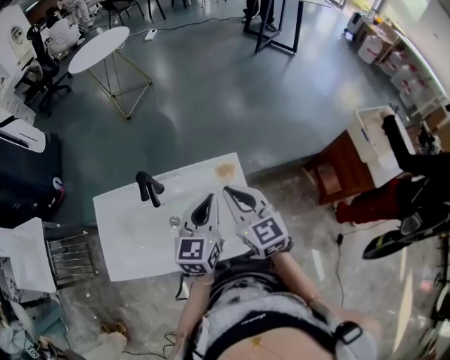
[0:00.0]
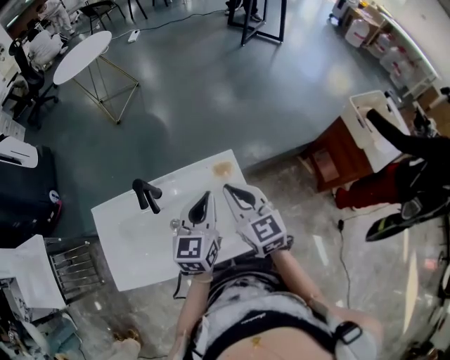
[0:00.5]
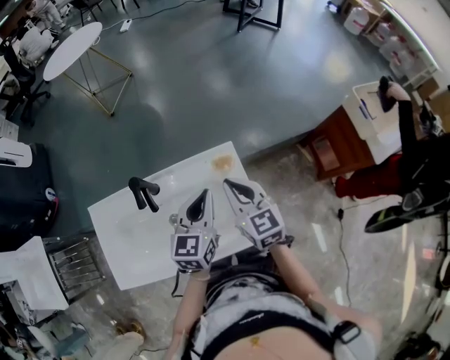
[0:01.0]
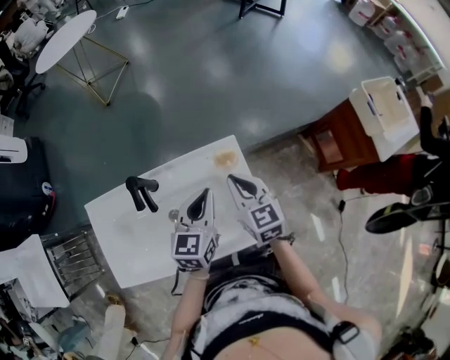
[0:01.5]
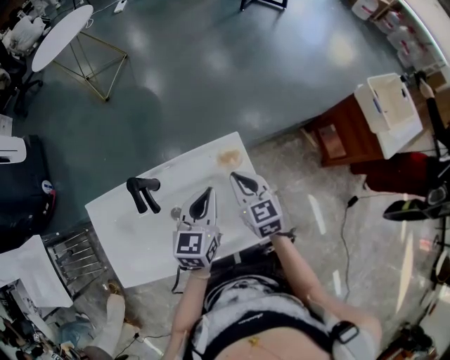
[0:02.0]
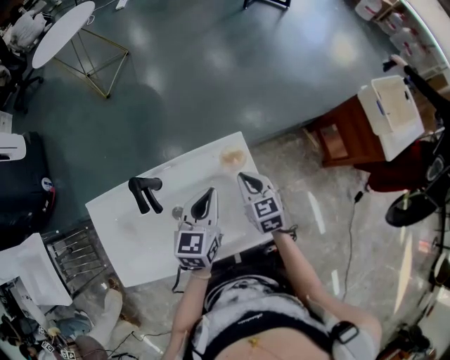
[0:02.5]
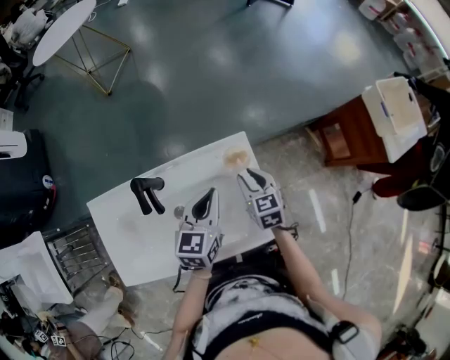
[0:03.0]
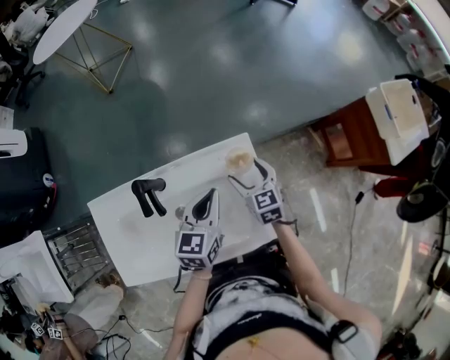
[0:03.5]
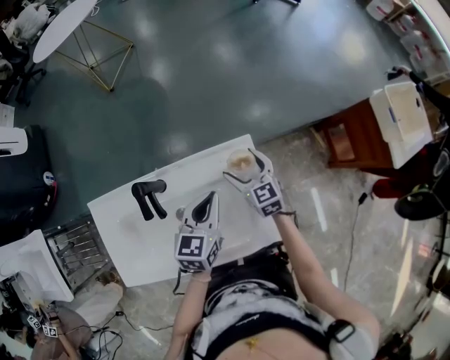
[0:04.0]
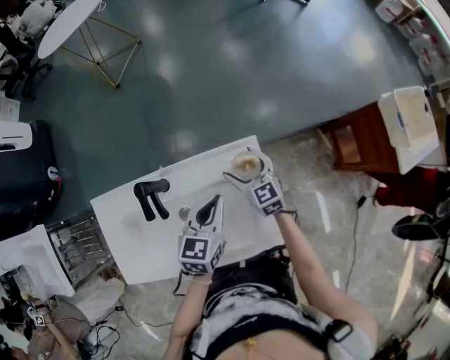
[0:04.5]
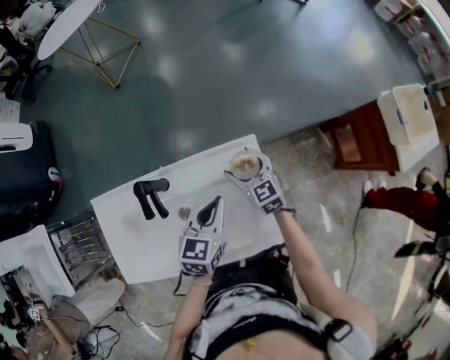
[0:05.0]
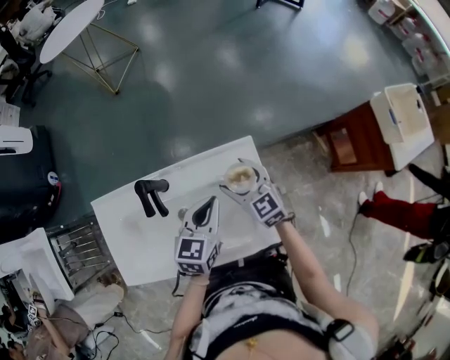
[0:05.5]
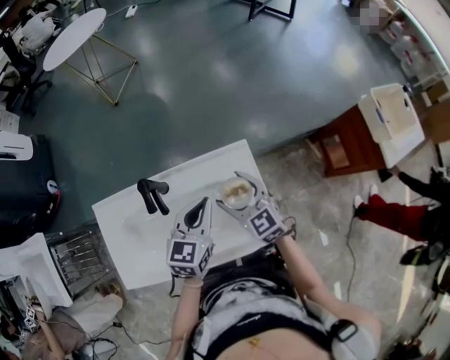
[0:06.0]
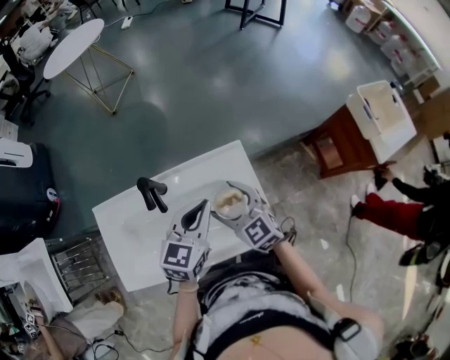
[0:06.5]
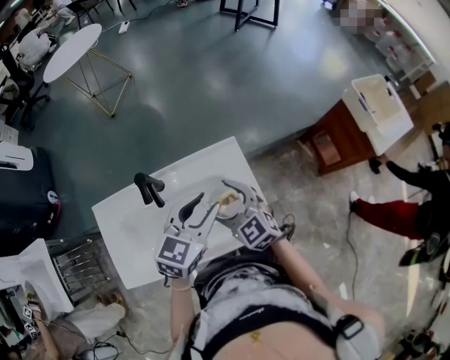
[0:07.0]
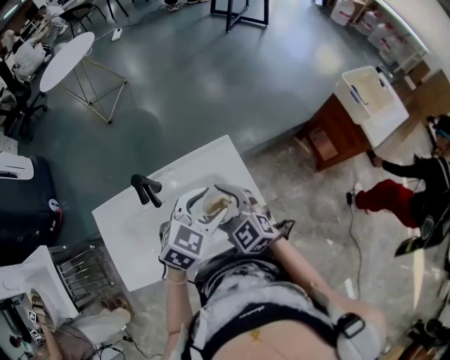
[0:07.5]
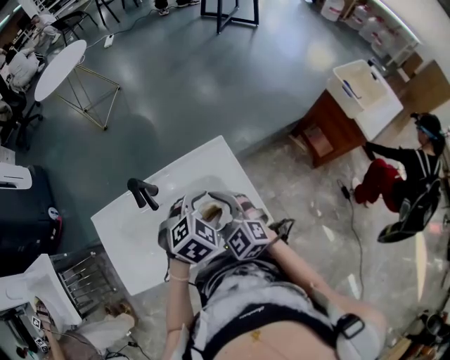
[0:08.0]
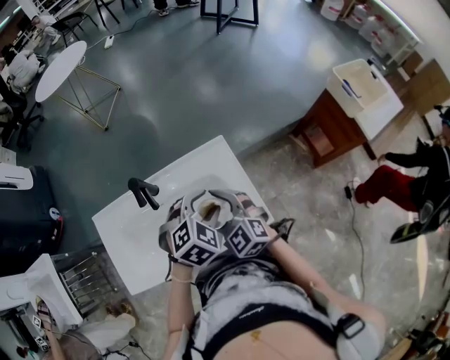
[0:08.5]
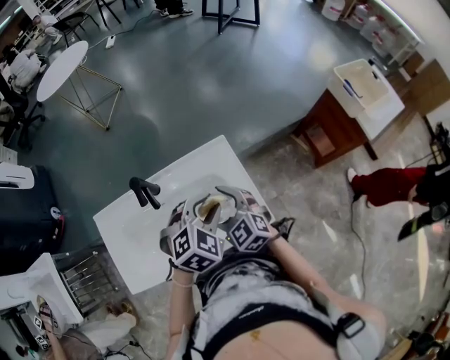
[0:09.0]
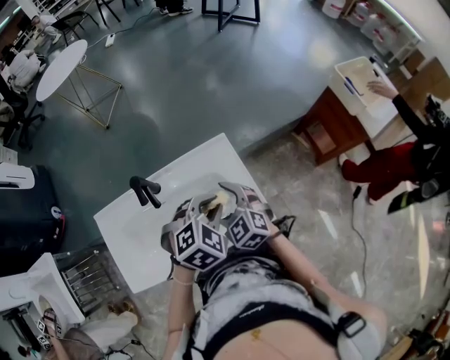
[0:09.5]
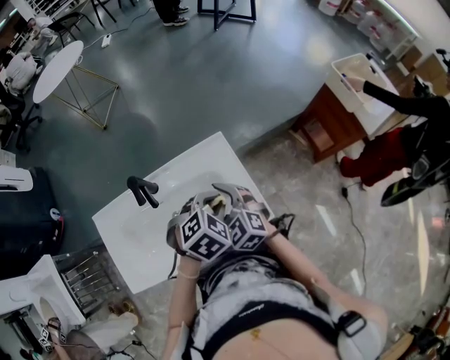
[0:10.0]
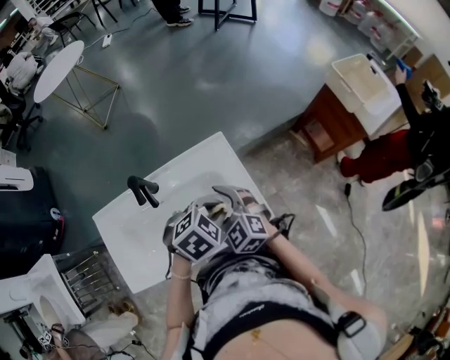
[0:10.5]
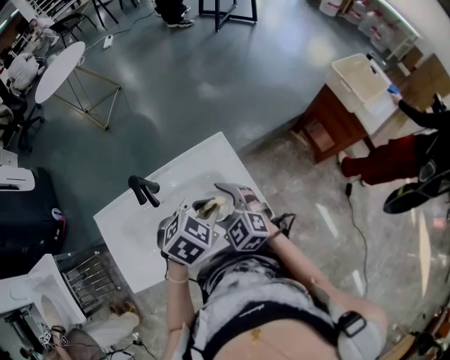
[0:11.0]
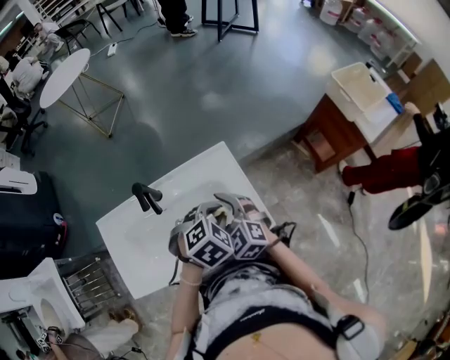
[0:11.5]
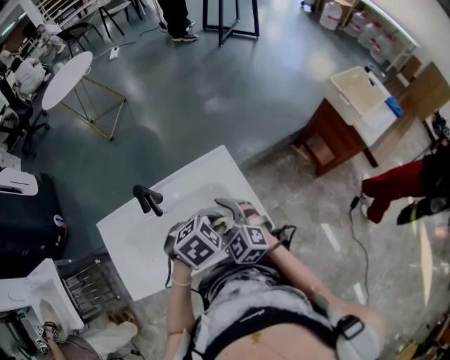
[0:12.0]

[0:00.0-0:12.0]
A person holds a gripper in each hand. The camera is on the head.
0:00.0 to 0:02.0: The left gripper heads downward, covering approximately 10 cm. Meanwhile the right gripper shifts roughly 15 cm downward and forward.
0:02.0 to 0:04.0: The right gripper shifts roughly 10 cm downward and forward, and opens.
0:04.0 to 0:06.0: The left gripper shifts by some 5 cm, while the right gripper shifts some 15 cm upward and backward.
0:06.0 to 0:08.0: The left gripper travels backward and to the right by roughly 10 cm, points its fingers roughly 30 degrees further downward, and opens up. The right gripper travels backward by about 10 cm.
0:08.0 to 0:10.0: The left gripper closes.
0:10.0 to 0:12.0: There are only small adjustments of the grippers.

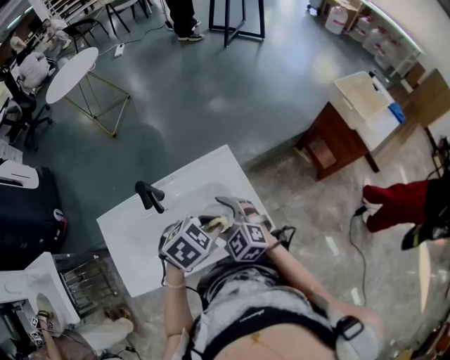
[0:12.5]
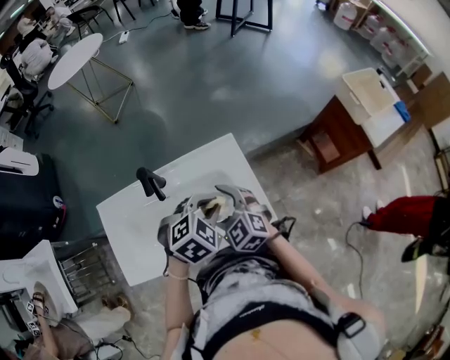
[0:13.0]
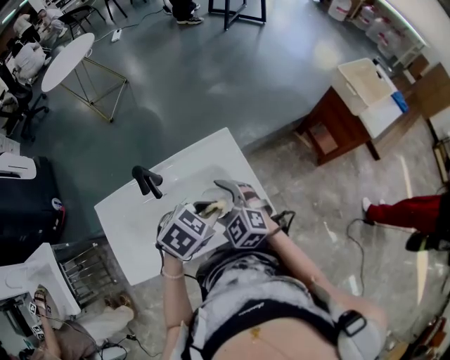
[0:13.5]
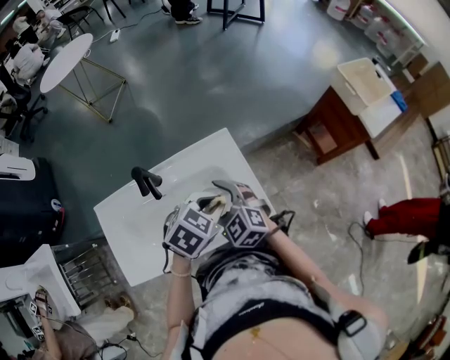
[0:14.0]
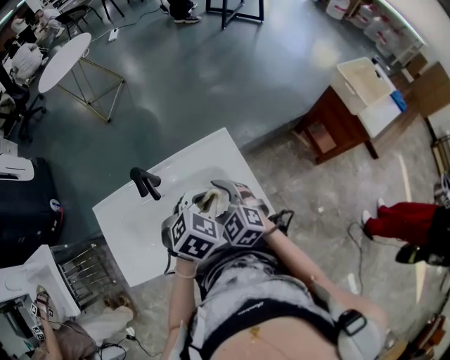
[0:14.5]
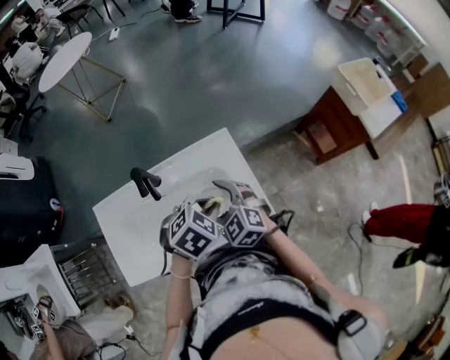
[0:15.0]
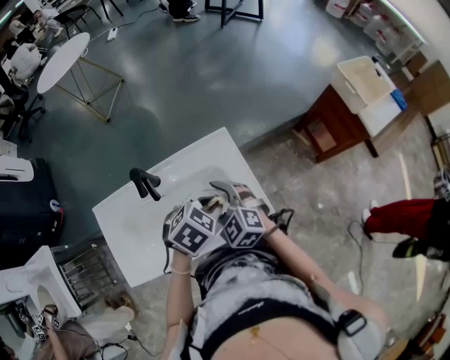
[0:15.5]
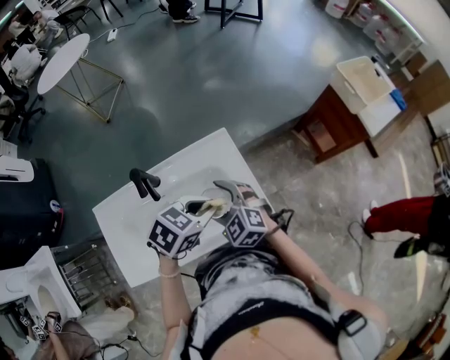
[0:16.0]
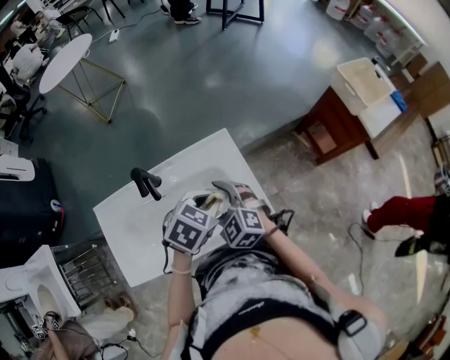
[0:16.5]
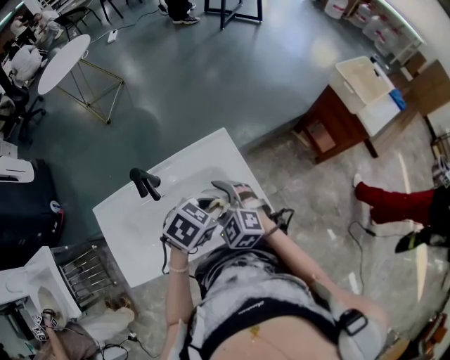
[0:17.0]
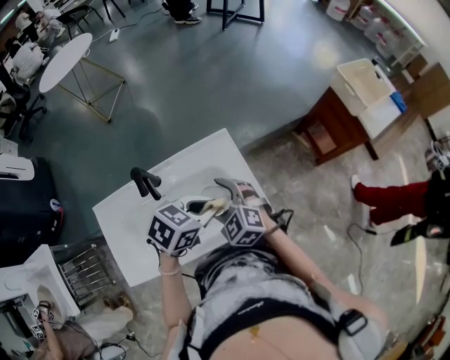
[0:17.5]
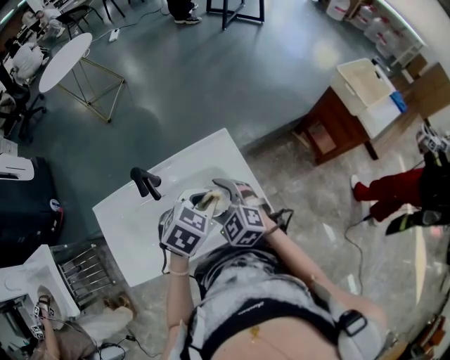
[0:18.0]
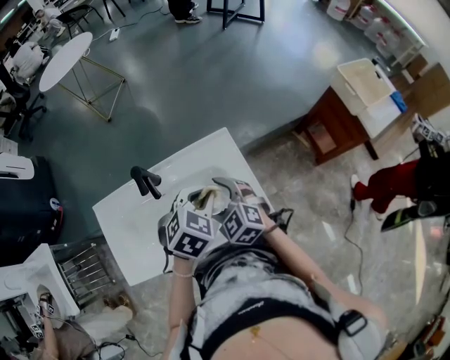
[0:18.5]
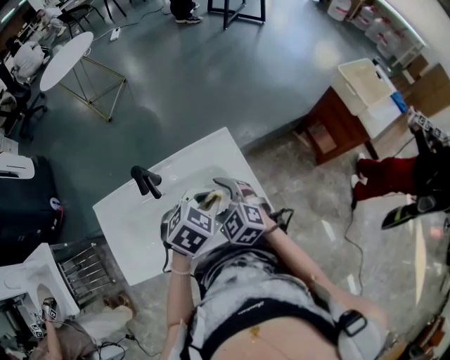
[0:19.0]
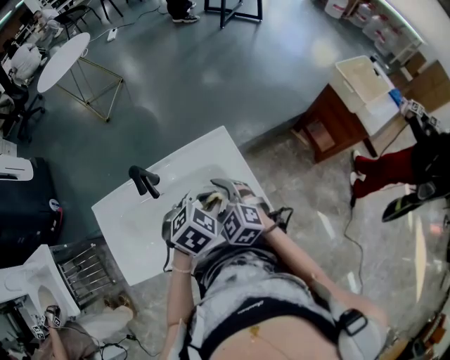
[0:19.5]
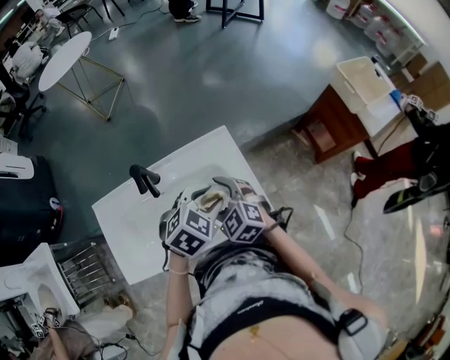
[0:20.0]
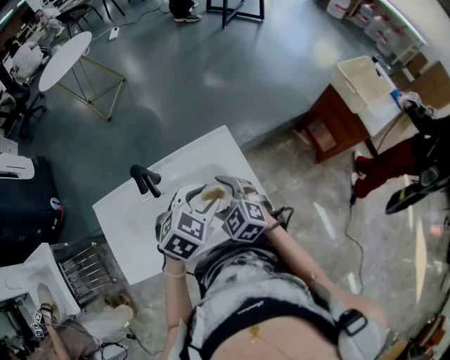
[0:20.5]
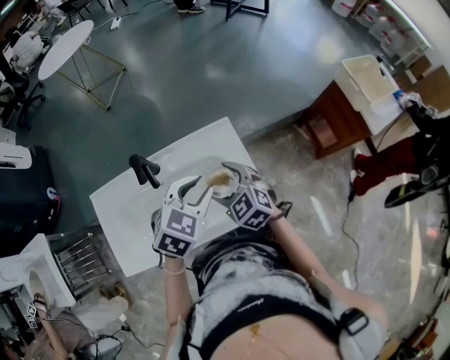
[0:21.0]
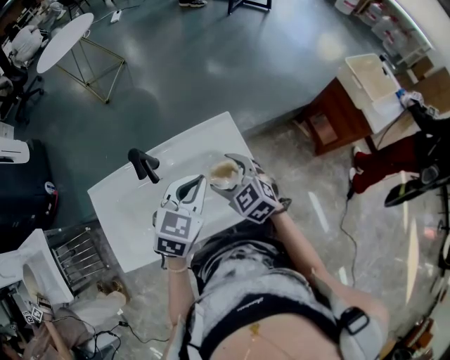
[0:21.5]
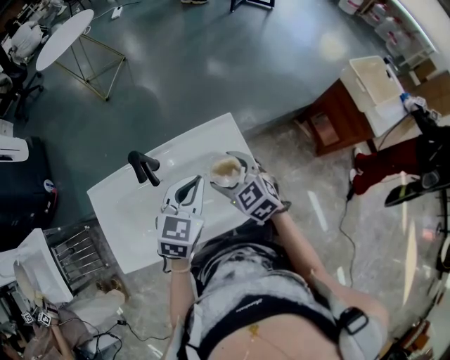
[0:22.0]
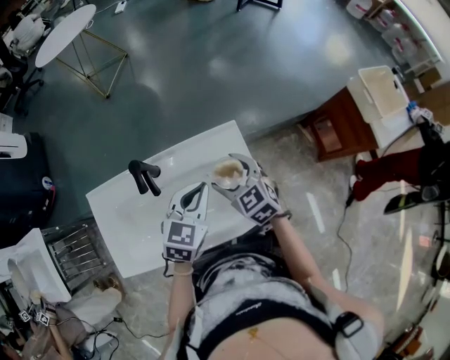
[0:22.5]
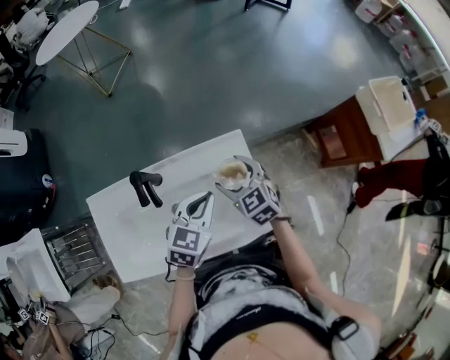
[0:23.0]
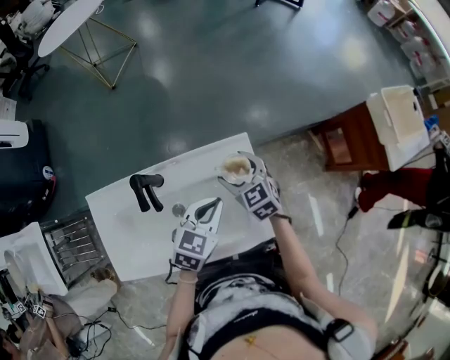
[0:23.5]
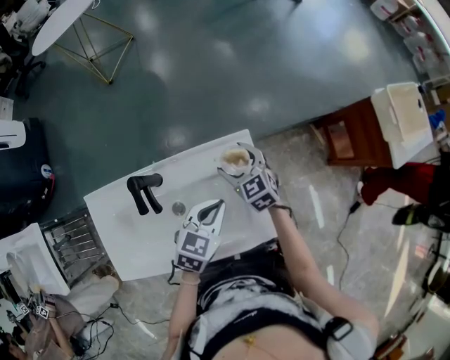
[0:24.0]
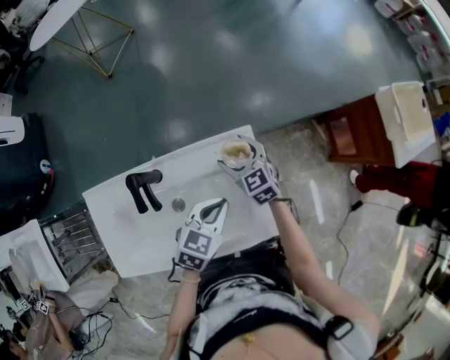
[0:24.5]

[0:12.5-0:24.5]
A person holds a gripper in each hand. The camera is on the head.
0:12.5 to 0:14.5: The left gripper ends up some 5 cm from where it was, and rotates some 20 degrees.
0:16.5 to 0:18.5: There are only small adjustments of the grippers.
0:18.5 to 0:20.5: The left gripper opens its fingers.
0:20.5 to 0:22.5: The left gripper shifts some 5 cm forward, rotates roughly 30 degrees, and closes up. Meanwhile the right gripper heads forward, covering roughly 10 cm.
0:22.5 to 0:24.5: The right gripper shifts roughly 15 cm forward and downward, while the left gripper heads downward, covering approximately 10 cm.

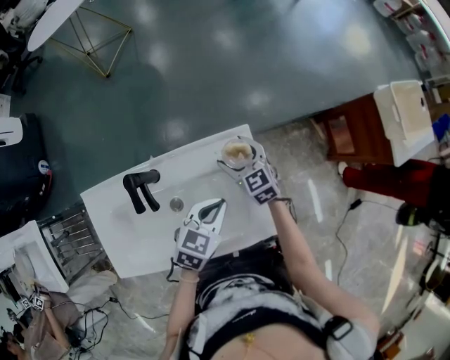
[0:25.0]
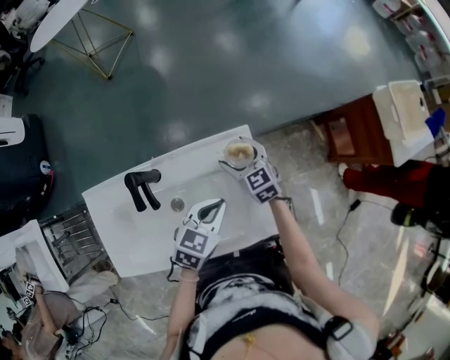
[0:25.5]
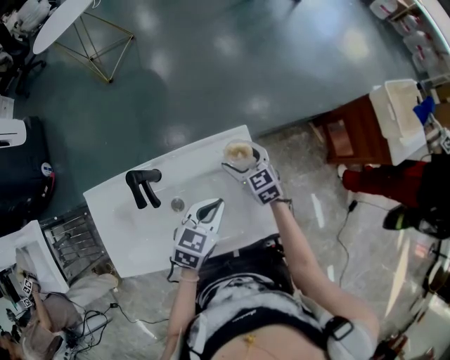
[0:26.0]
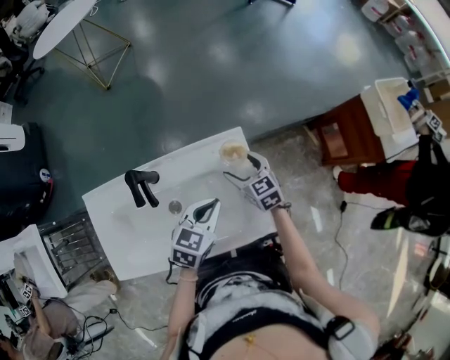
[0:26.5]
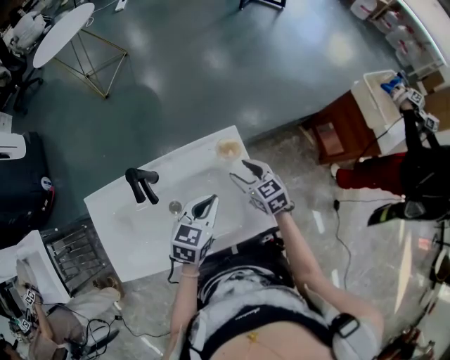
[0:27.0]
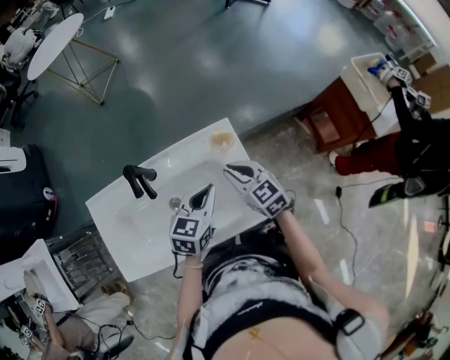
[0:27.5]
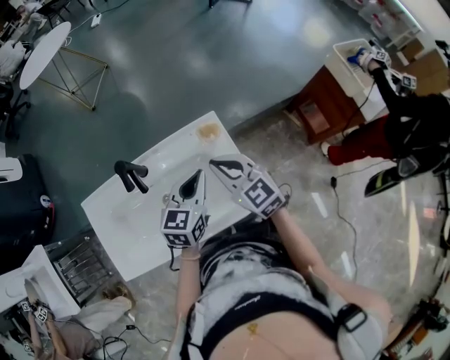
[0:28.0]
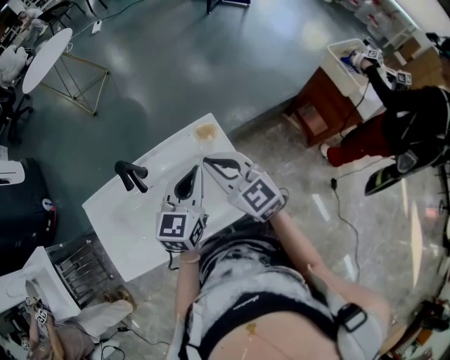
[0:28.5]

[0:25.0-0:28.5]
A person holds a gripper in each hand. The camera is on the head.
0:25.0 to 0:27.0: The right gripper shifts approximately 10 cm backward and to the right.
0:27.0 to 0:28.5: The left gripper shifts approximately 10 cm upward, and rotates some 20 degrees, while the right gripper goes some 20 cm upward, changes its angle by approximately 20 degrees, and closes its fingers.
